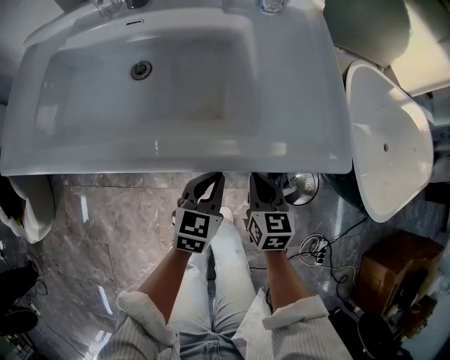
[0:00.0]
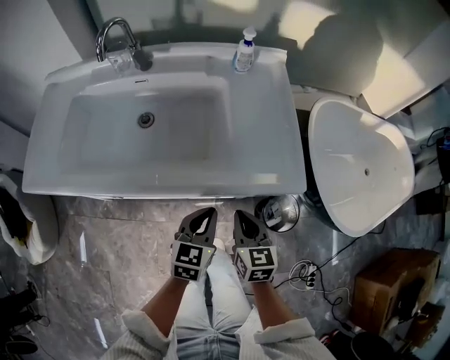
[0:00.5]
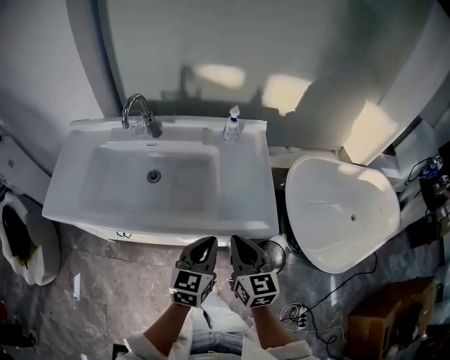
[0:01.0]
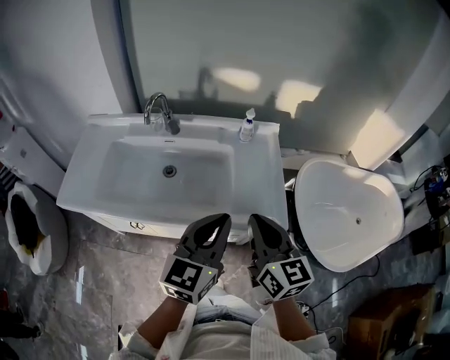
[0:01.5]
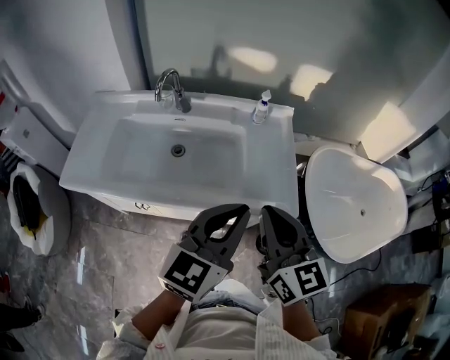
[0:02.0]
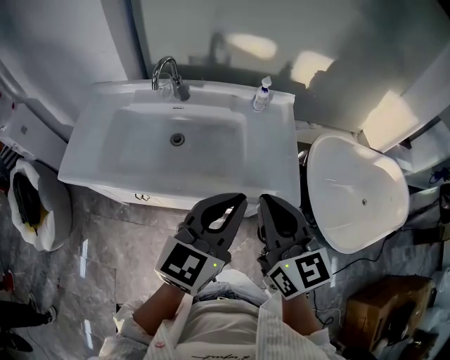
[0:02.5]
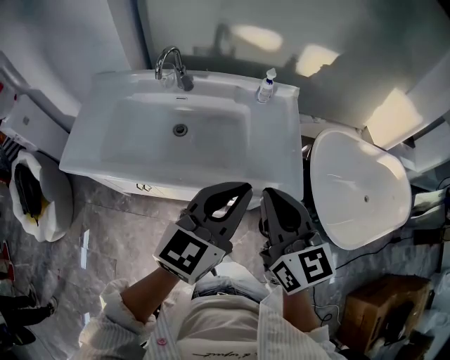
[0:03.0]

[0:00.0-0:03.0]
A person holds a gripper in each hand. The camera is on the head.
0:00.0 to 0:01.5: The two grippers go roughly 40 cm upward. The right gripper swivels approximately 30 degrees, while the left gripper swivels about 30 degrees.
0:01.5 to 0:03.0: The right gripper moves approximately 5 cm.

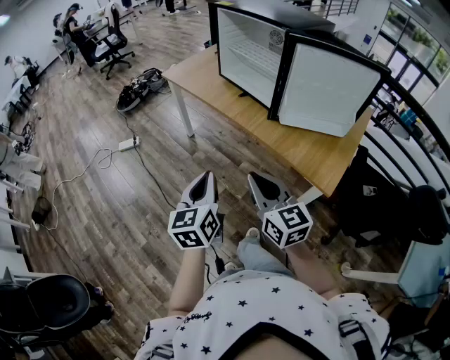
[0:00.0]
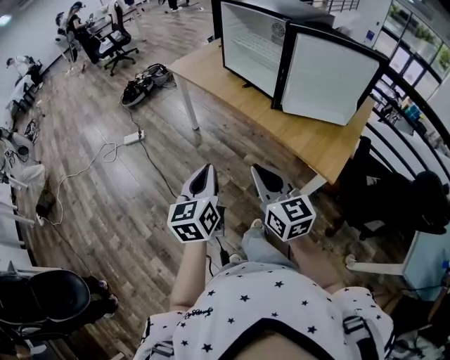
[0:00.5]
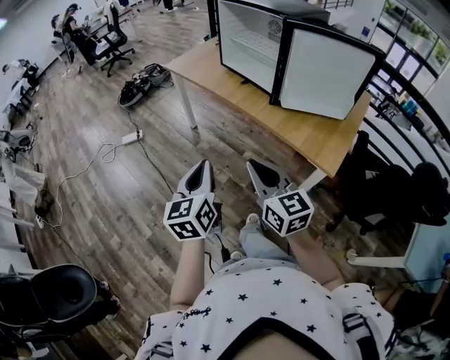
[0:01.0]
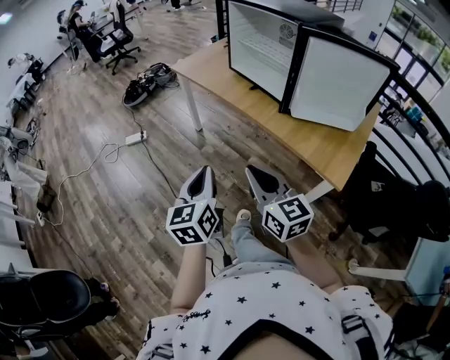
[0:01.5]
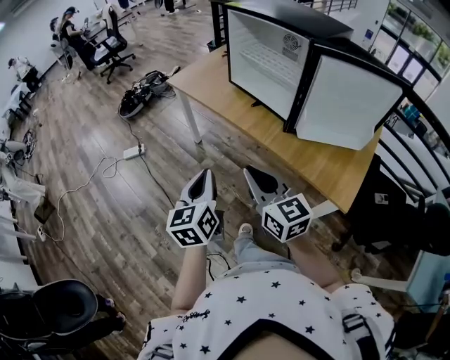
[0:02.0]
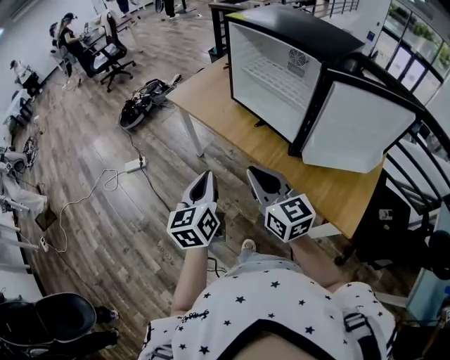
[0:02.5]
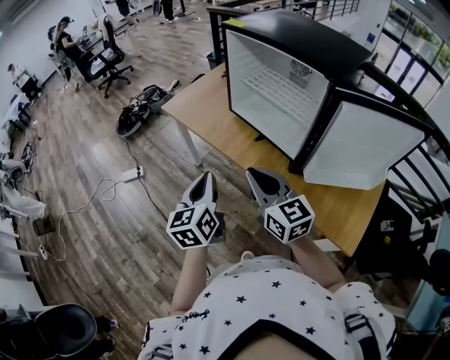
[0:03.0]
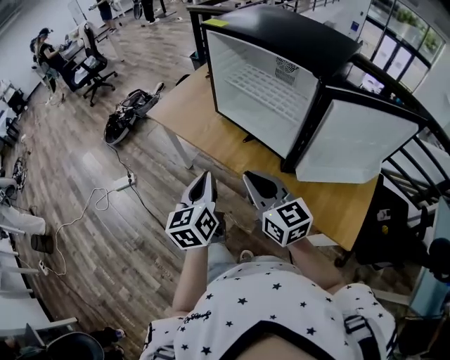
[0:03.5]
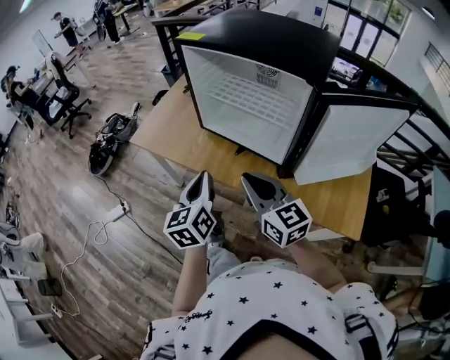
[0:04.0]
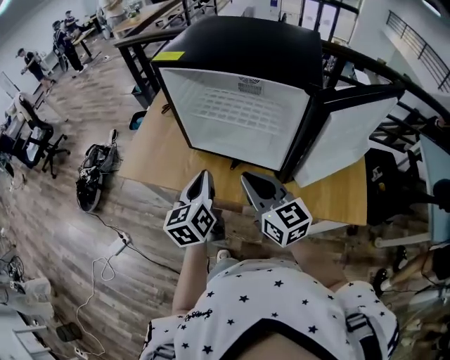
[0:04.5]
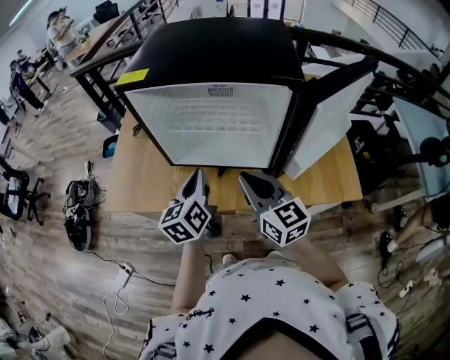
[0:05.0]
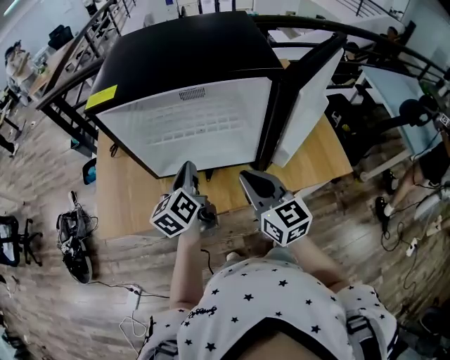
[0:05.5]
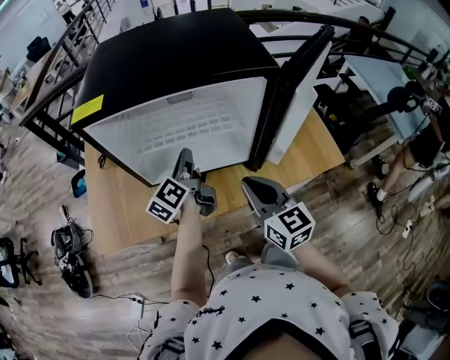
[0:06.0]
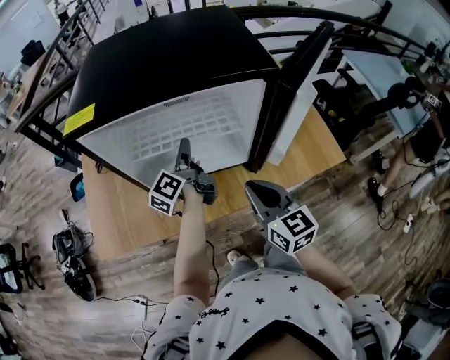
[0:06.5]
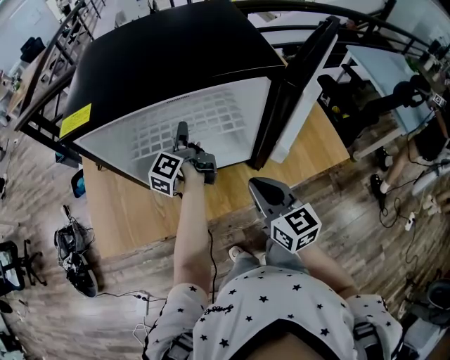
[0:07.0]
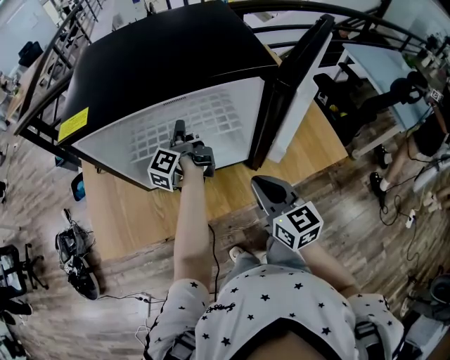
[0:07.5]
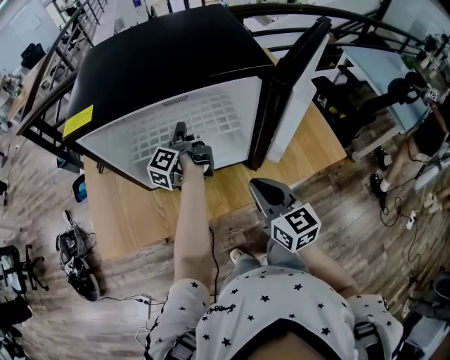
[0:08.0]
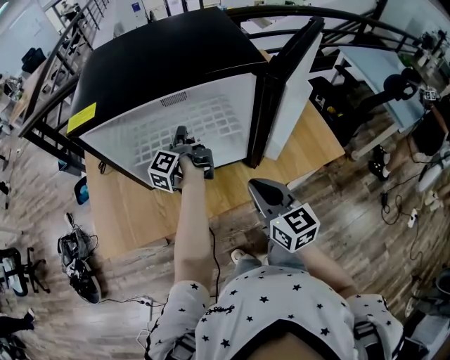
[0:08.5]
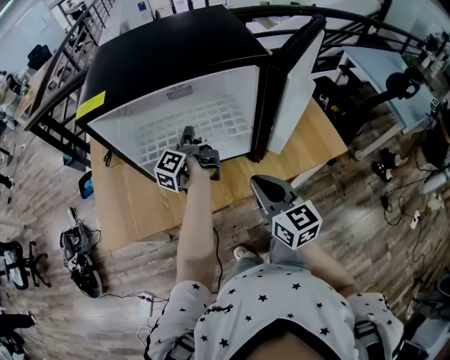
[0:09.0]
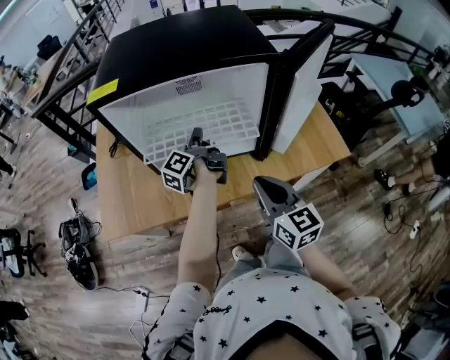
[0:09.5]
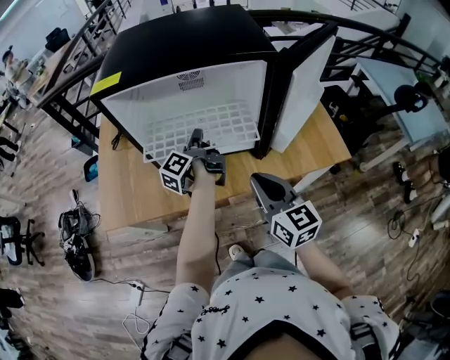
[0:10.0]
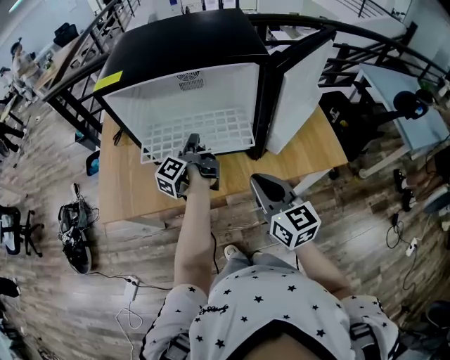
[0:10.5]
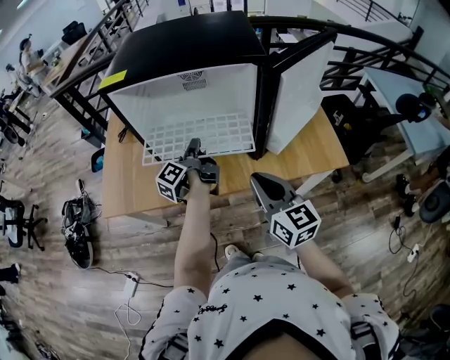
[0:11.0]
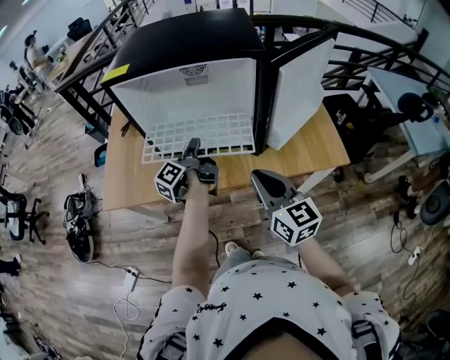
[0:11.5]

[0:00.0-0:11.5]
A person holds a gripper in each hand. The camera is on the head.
0:00.0 to 0:02.0: The right gripper heads forward and to the left, covering about 15 cm. The left gripper travels forward by about 10 cm.
0:02.0 to 0:04.0: Both grippers travel together forward, roughly 25 cm.
0:04.0 to 0:06.0: The right gripper shifts by about 5 cm, and changes its angle by roughly 40 degrees. The left gripper moves roughly 25 cm, and swivels roughly 50 degrees.
0:06.0 to 0:07.5: The left gripper heads forward, covering approximately 10 cm, rotates some 20 degrees, and opens, then closes once more.
0:07.5 to 0:09.5: The right gripper shifts some 5 cm backward, while the left gripper travels backward by some 10 cm.
0:09.5 to 0:11.5: The right gripper ends up about 5 cm from where it was. The left gripper goes about 10 cm backward.

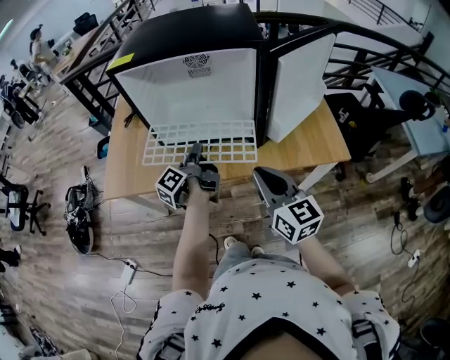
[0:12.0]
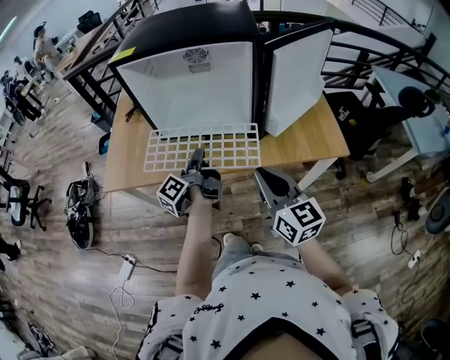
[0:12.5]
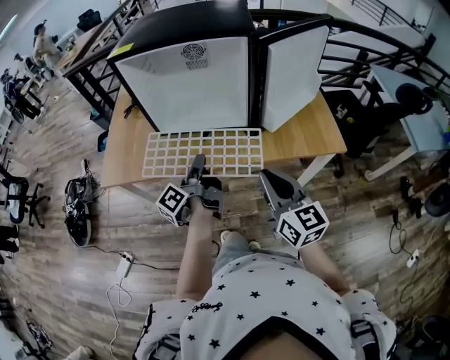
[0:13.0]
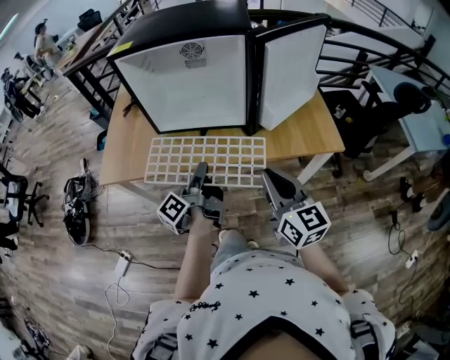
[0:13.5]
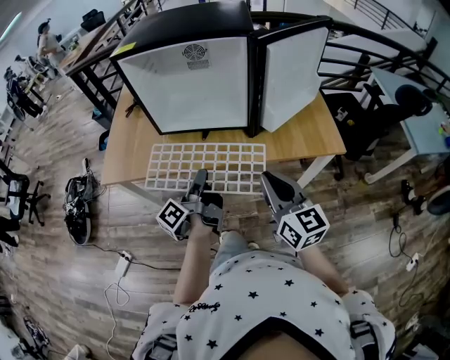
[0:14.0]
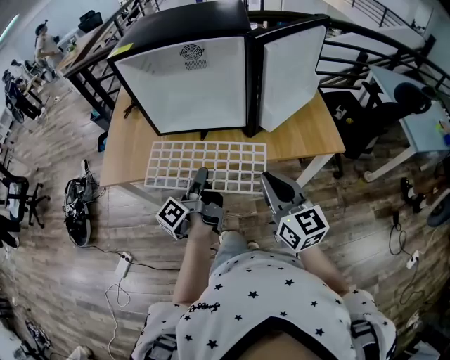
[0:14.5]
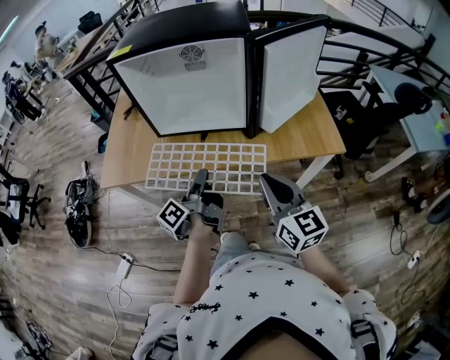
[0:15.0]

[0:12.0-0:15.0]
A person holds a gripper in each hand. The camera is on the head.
0:12.0 to 0:13.5: The left gripper goes roughly 15 cm backward. The right gripper heads backward, covering some 10 cm.
0:13.5 to 0:15.0: The two grippers keep their place.

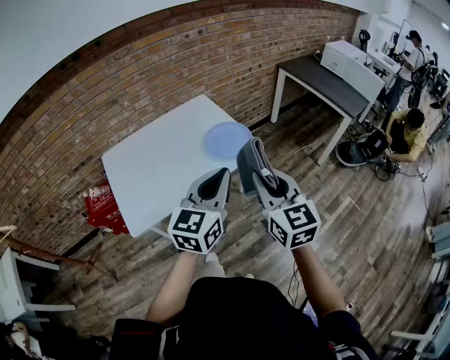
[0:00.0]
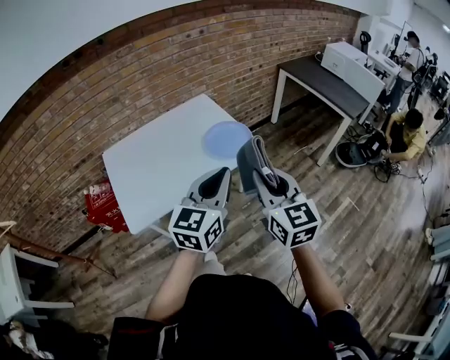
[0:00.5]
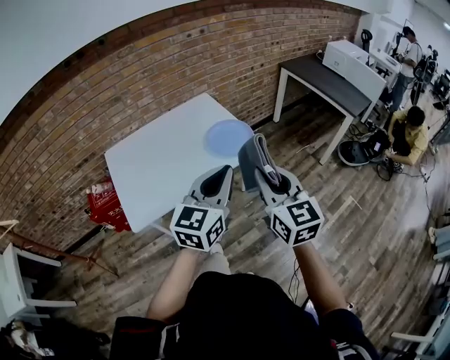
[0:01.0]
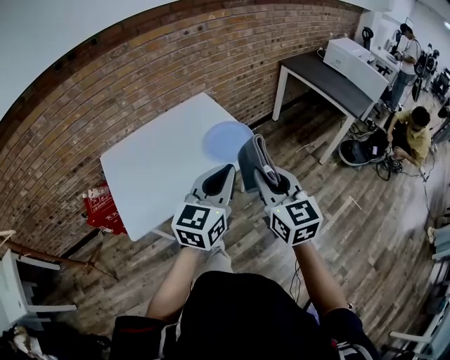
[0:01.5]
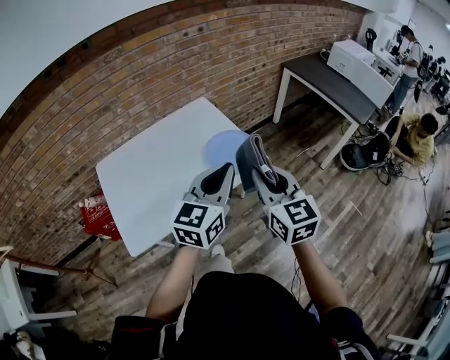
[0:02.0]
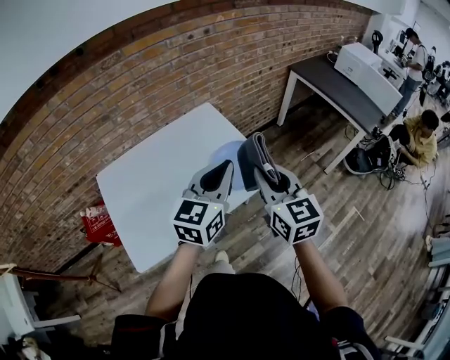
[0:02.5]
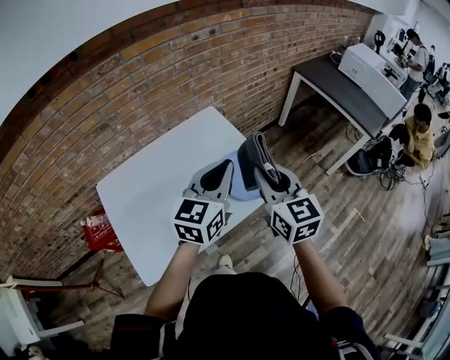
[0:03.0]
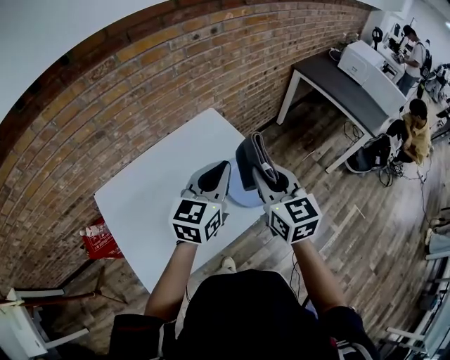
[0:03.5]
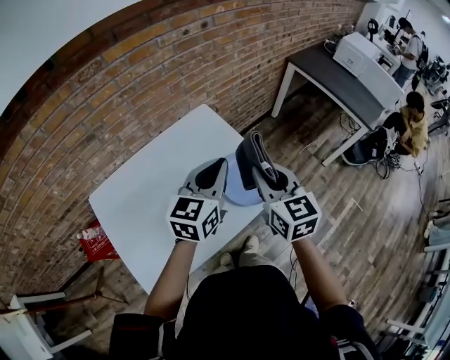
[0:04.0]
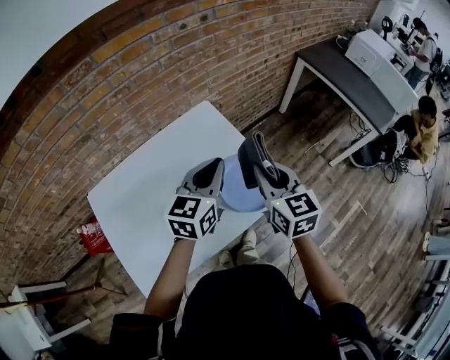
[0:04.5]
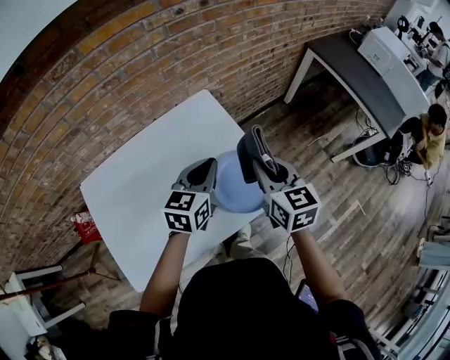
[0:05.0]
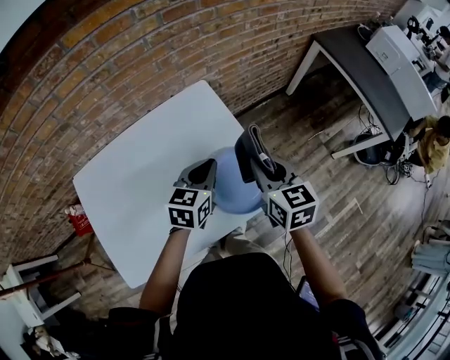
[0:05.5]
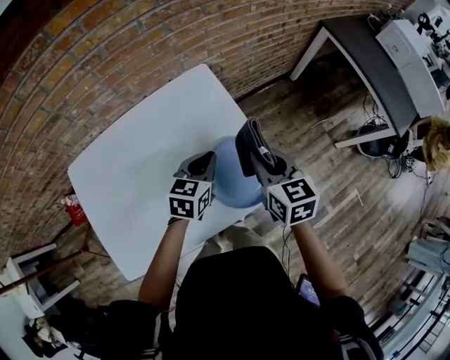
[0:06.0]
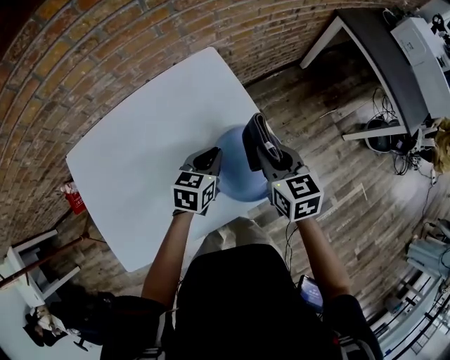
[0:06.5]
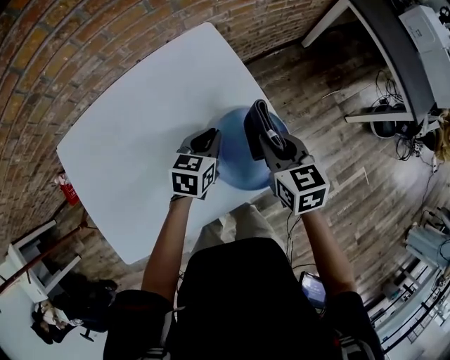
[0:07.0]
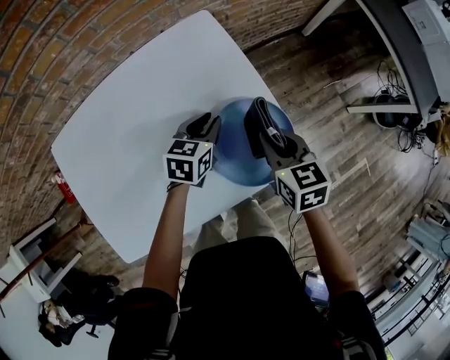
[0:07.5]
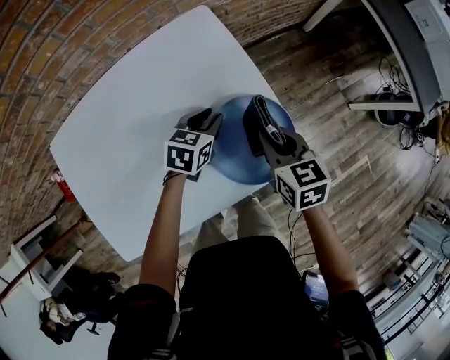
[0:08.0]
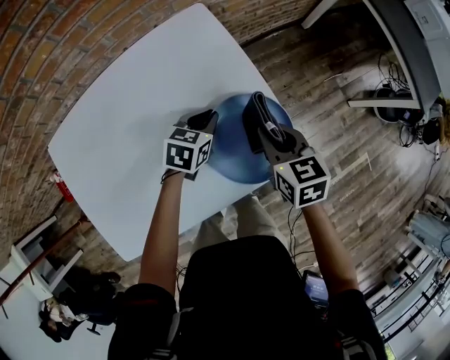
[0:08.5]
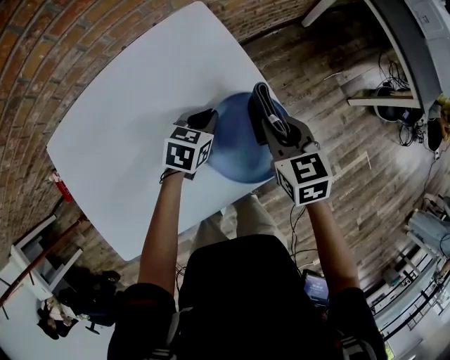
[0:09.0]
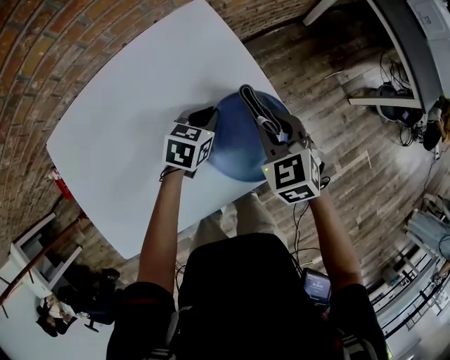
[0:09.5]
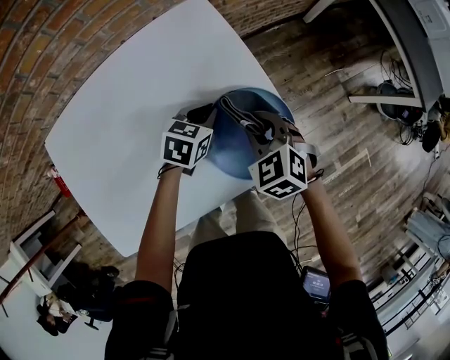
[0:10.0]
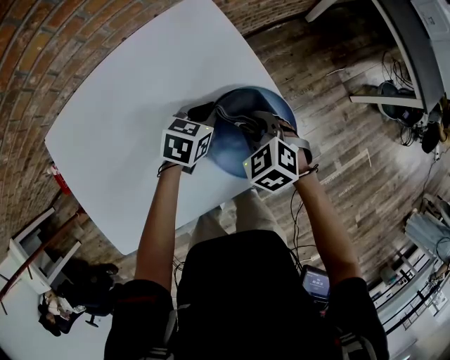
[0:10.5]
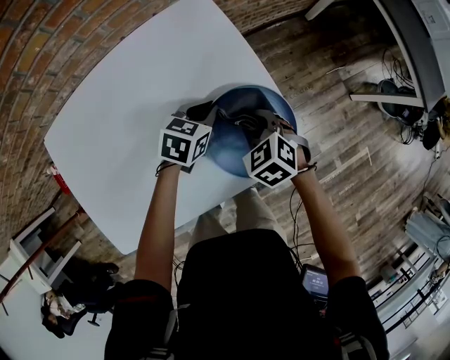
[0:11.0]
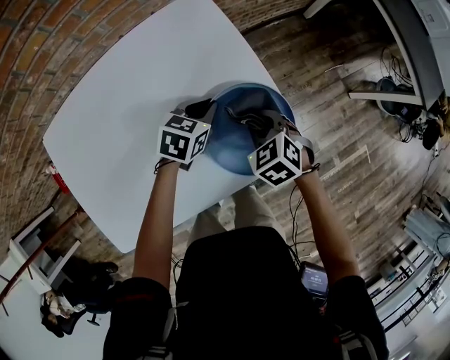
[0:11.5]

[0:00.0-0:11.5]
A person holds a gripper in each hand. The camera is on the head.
0:00.0 to 0:02.0: Both grippers travel together forward, about 10 cm.
0:02.0 to 0:04.0: Both grippers move forward and to the left, some 20 cm.
0:04.0 to 0:06.0: Both grippers move downward and forward, approximately 20 cm. The left gripper swivels some 30 degrees.
0:06.0 to 0:07.5: The grippers both shift downward by approximately 10 cm.
0:07.5 to 0:09.5: The right gripper changes its angle by roughly 30 degrees.
0:09.5 to 0:11.5: The right gripper goes some 10 cm downward.
